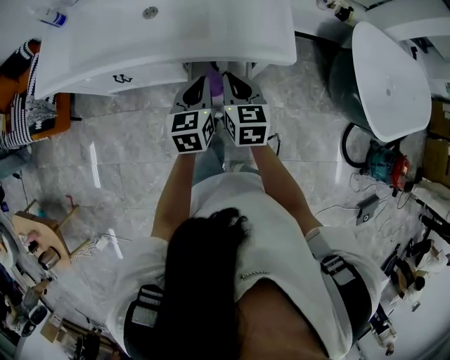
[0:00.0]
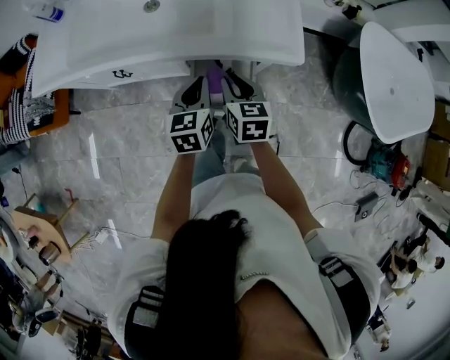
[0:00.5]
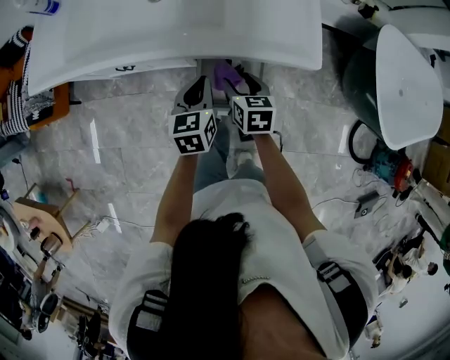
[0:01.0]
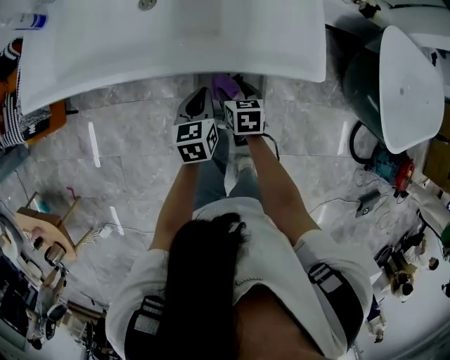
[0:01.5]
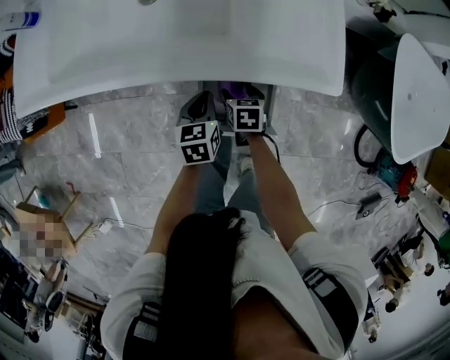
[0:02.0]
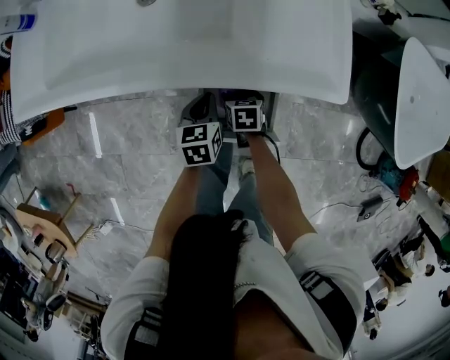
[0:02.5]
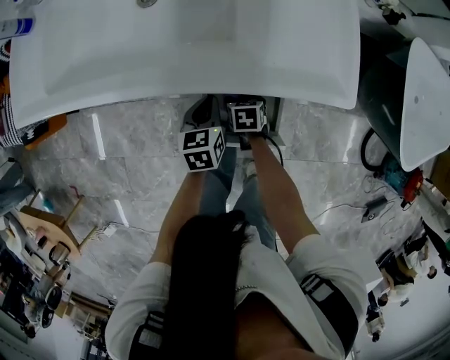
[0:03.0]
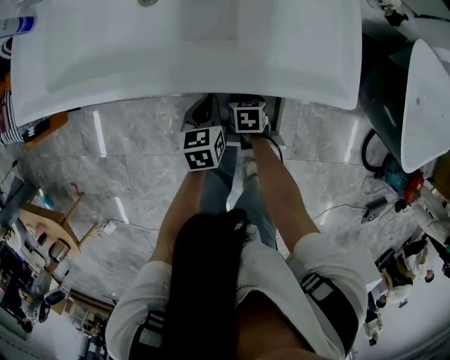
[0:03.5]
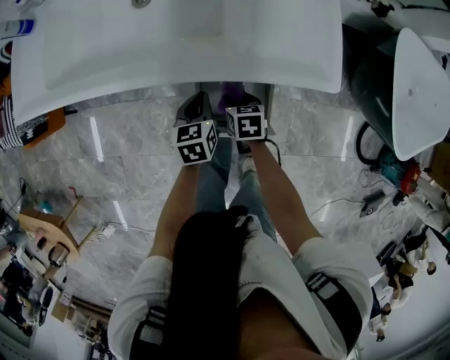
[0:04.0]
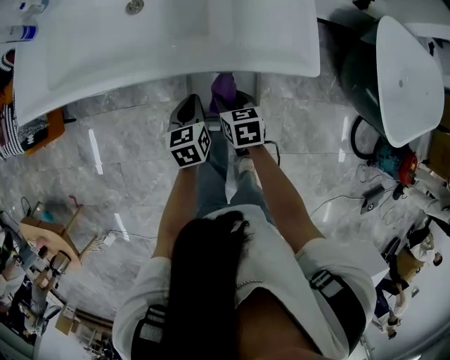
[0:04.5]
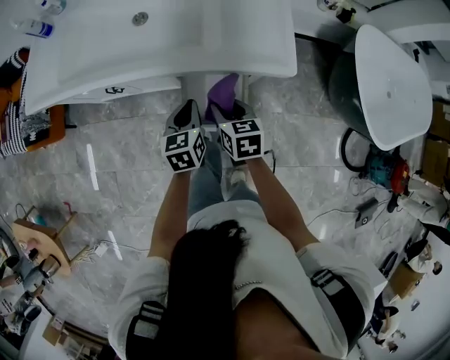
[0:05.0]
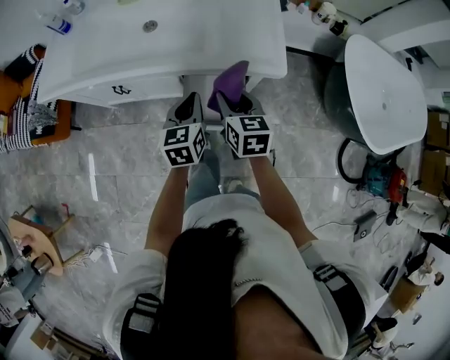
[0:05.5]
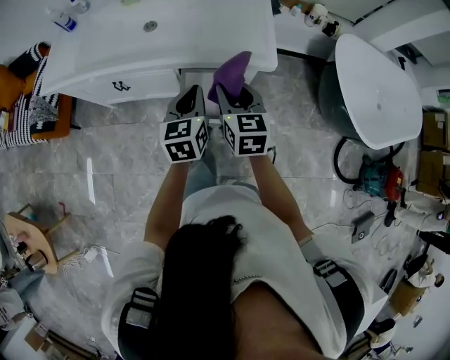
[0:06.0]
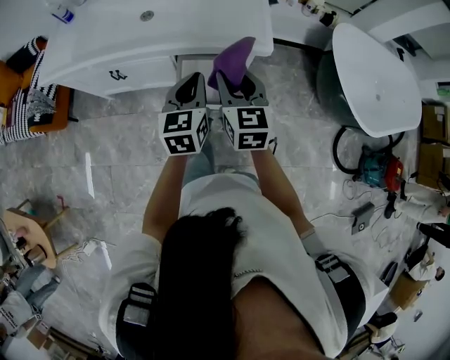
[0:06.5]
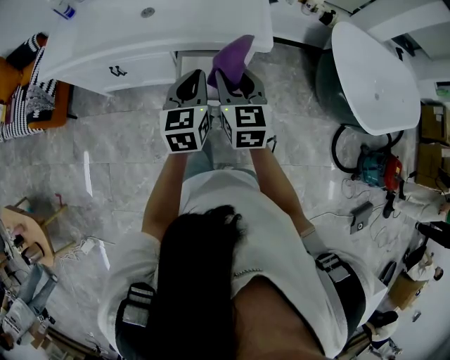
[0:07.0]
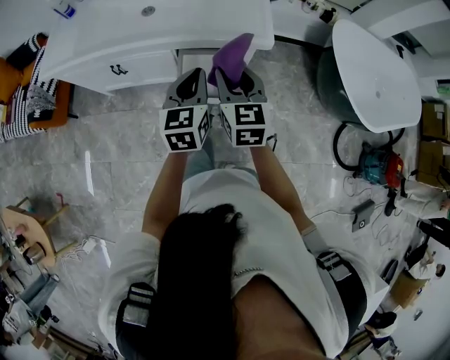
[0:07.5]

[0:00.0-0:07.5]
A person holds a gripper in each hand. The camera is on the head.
0.0 to 2.0 s: The left gripper travels downward by some 20 cm. The right gripper is displaced downward by some 25 cm, tips its fingers downward by about 30 degrees, and opens up.
2.0 to 4.0 s: The right gripper travels downward and back again, some 5 cm each way, and closes its fingers.
4.0 to 5.5 s: Both grippers move upward, some 20 cm. The right gripper swivels approximately 30 degrees.
5.5 to 7.5 s: The two grippers go roughly 10 cm upward and backward.

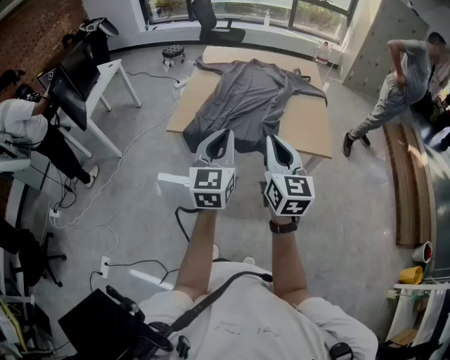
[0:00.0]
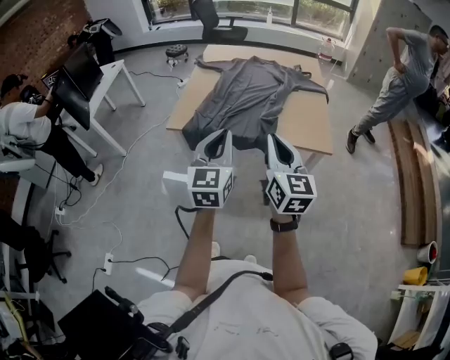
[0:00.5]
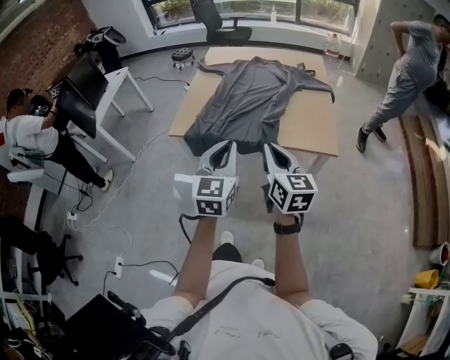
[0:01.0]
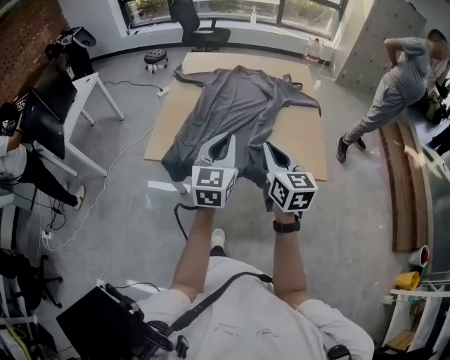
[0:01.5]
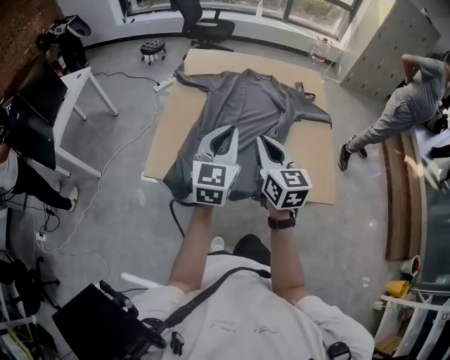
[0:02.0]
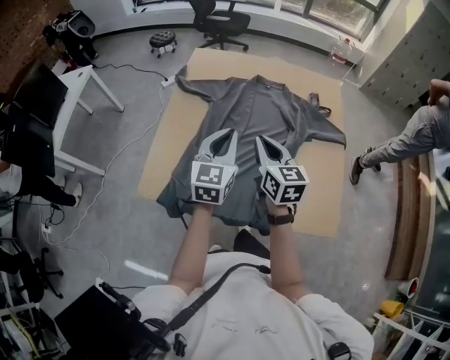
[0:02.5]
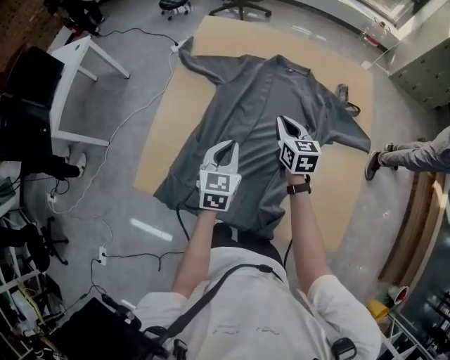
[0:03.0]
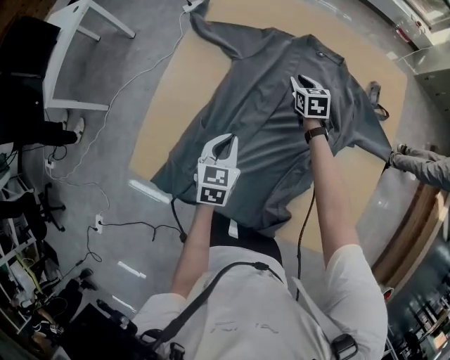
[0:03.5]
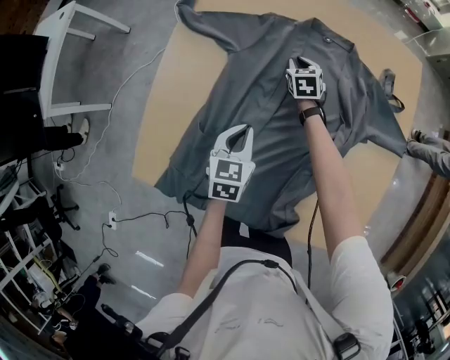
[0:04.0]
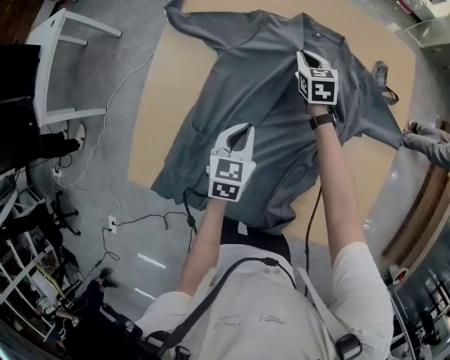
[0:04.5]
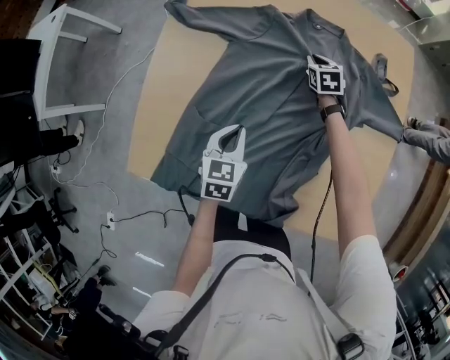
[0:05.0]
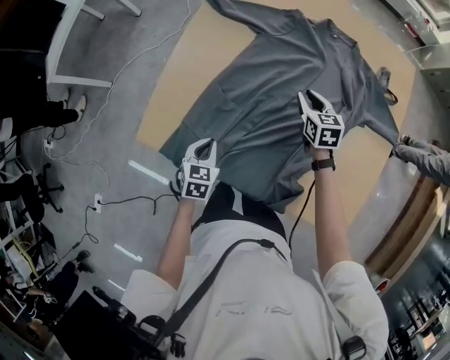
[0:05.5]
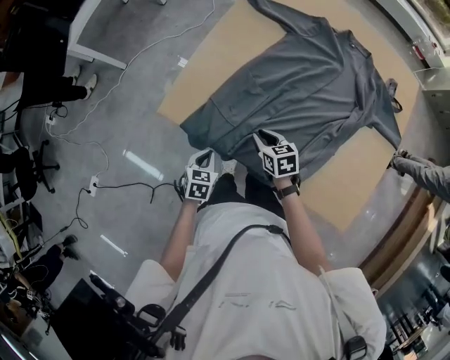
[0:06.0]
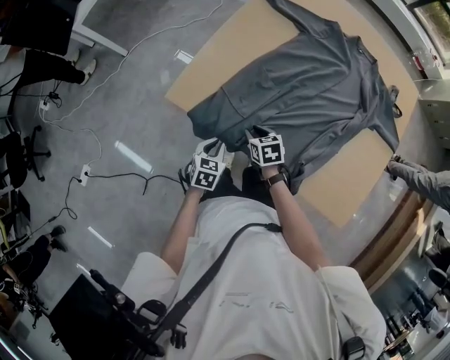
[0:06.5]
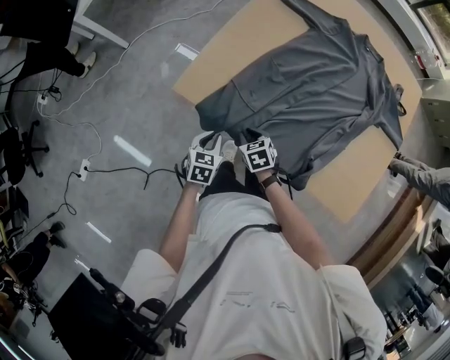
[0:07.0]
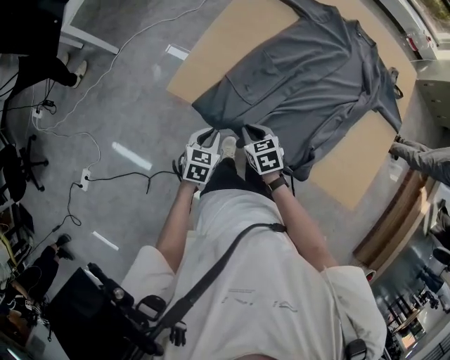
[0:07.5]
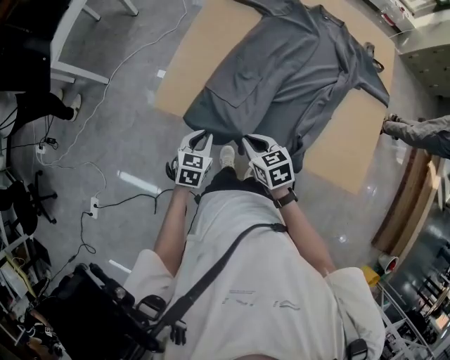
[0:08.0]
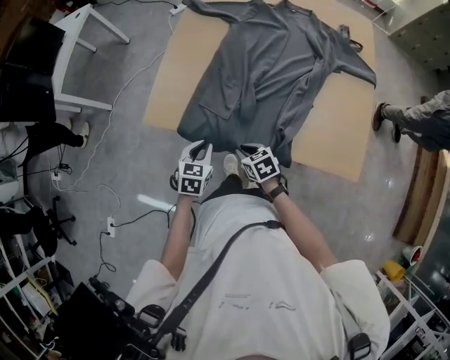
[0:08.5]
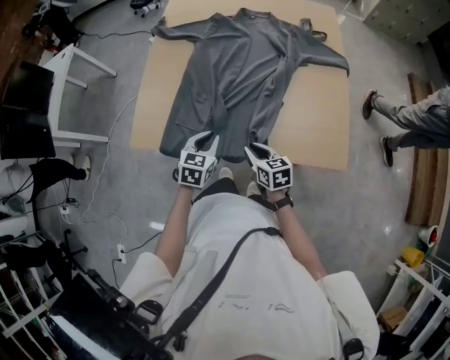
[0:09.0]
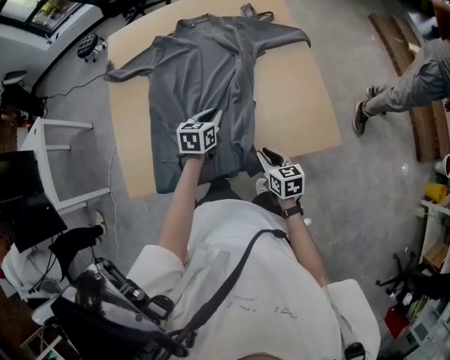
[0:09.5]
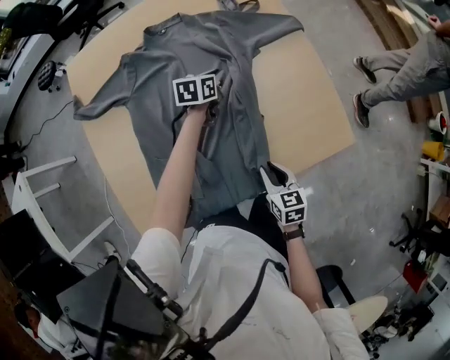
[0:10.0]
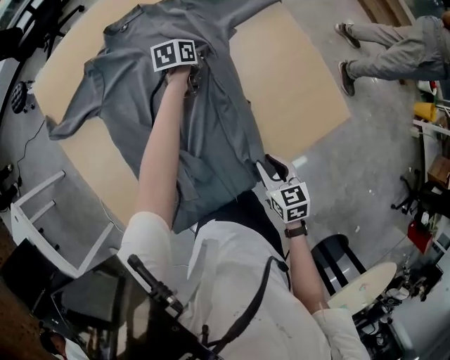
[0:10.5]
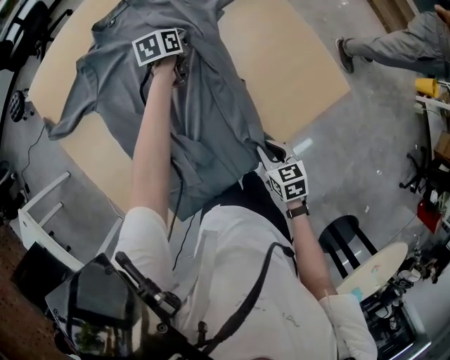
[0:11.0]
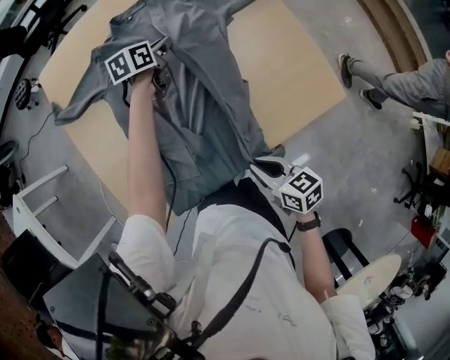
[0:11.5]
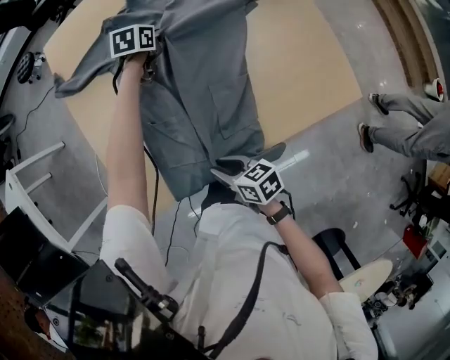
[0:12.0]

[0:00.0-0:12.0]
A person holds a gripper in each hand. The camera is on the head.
0.0 to 2.0 s: Both grippers travel together forward, some 35 cm.
2.0 to 4.0 s: The right gripper heads forward and downward, covering roughly 70 cm, and tips its fingers downward by roughly 40 degrees. The left gripper moves downward and forward, roughly 40 cm, and points its fingers approximately 40 degrees further downward.
4.0 to 6.0 s: The left gripper changes place by about 35 cm, while the right gripper moves up and down over some 10 cm, changing direction 2 times, and swivels roughly 30 degrees.
6.0 to 8.0 s: The right gripper heads backward, upward and to the left, covering roughly 10 cm. Meanwhile the left gripper shifts by approximately 5 cm.
8.0 to 10.0 s: The left gripper moves some 5 cm upward and comes back, and swivels some 40 degrees; the right gripper moves approximately 25 cm, and turns by approximately 60 degrees.
10.0 to 12.0 s: The left gripper swings up and down, some 10 cm each way, with 2 reversals. The right gripper goes upward and returns, approximately 5 cm each way, and changes its angle by approximately 40 degrees.

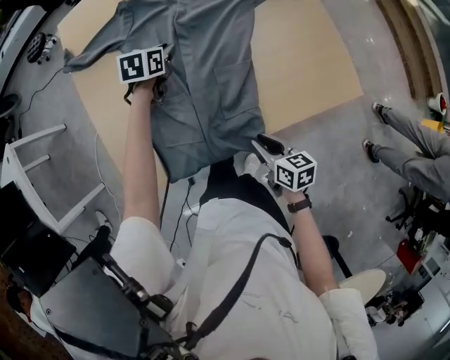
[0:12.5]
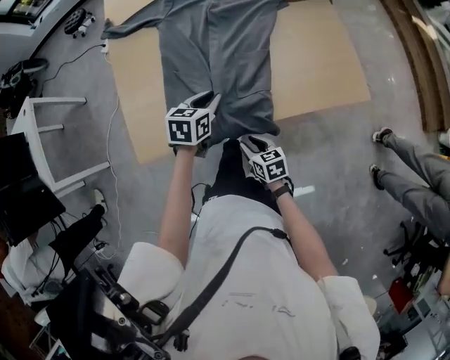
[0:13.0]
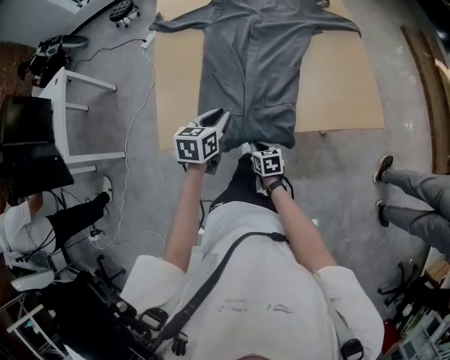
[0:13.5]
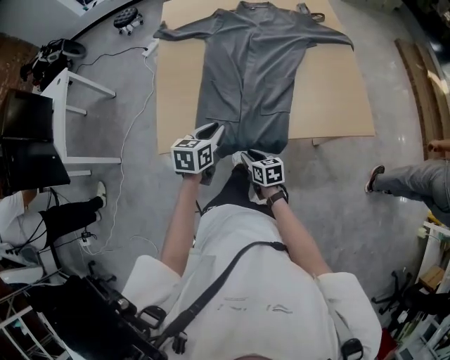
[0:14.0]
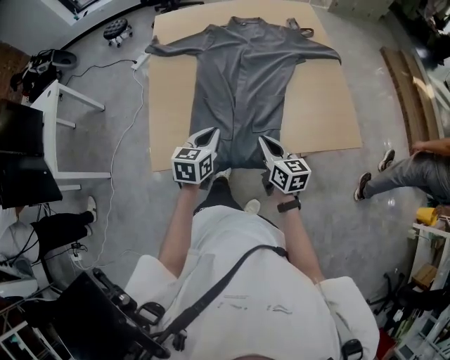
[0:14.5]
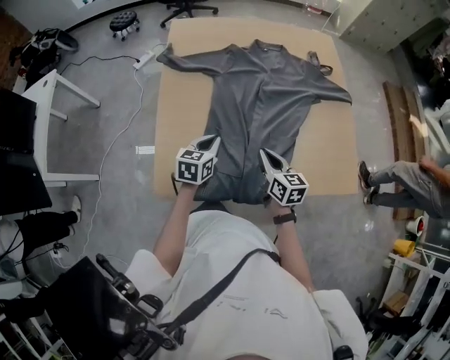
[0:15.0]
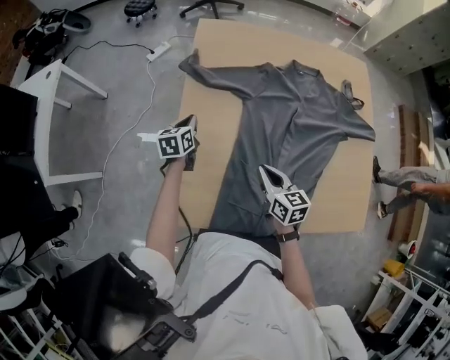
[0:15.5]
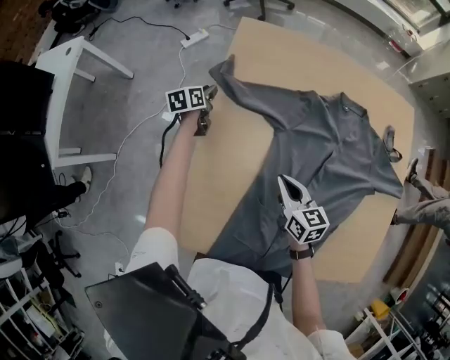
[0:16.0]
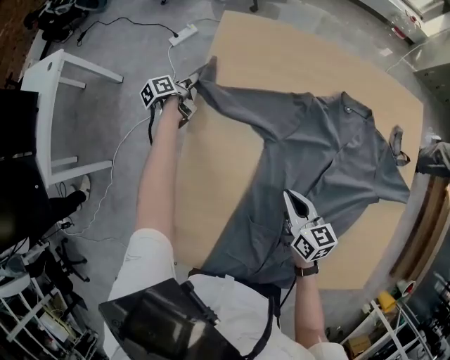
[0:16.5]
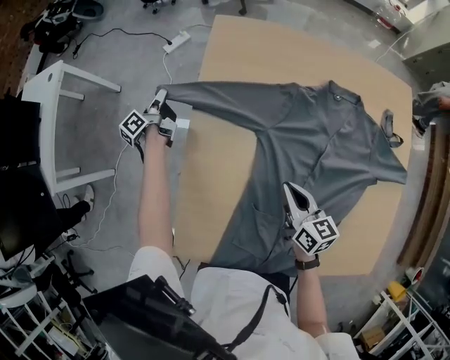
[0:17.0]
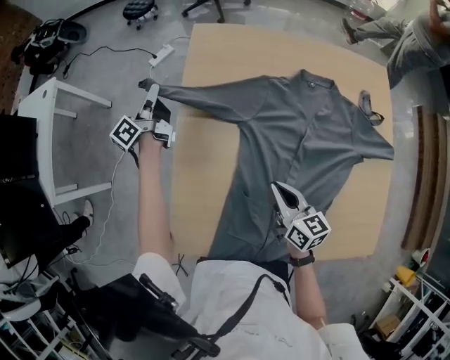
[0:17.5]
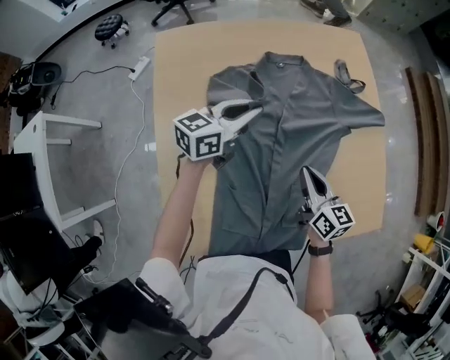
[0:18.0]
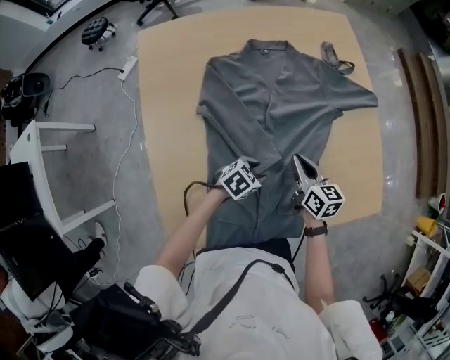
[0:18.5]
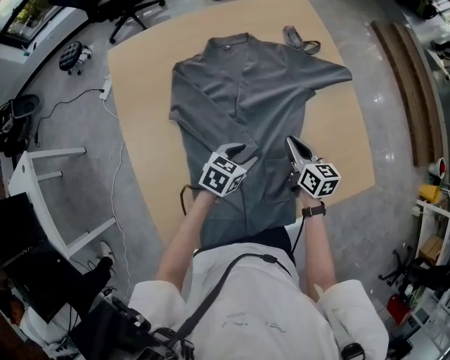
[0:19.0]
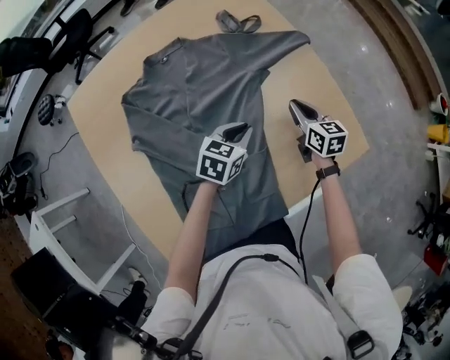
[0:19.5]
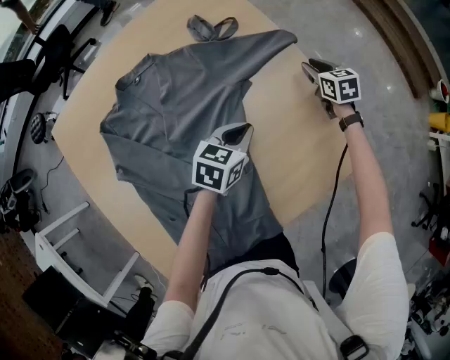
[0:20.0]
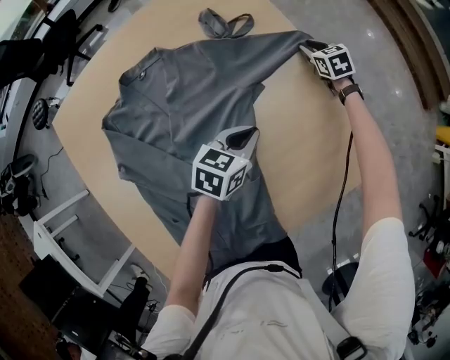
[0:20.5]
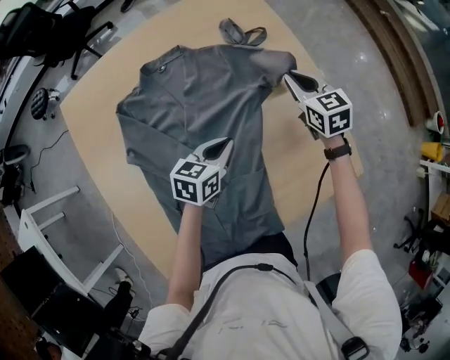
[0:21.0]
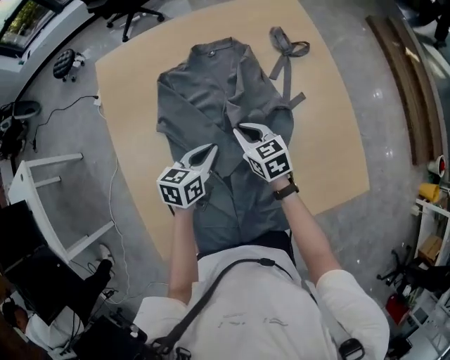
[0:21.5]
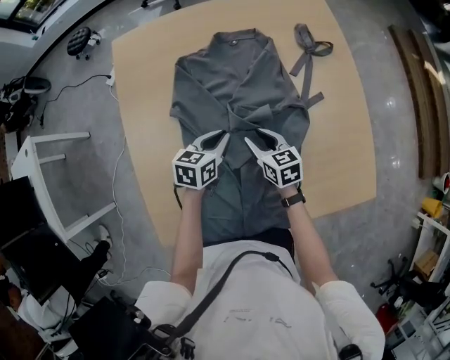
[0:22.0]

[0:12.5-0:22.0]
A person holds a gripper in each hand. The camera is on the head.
12.5 to 14.5 s: The left gripper travels backward and upward by roughly 30 cm, and changes its angle by approximately 20 degrees. The right gripper shifts about 15 cm upward and to the left, and swivels about 30 degrees.
14.5 to 16.5 s: The right gripper travels forward by approximately 35 cm, and swivels about 20 degrees. The left gripper shifts roughly 70 cm forward, to the left and downward, rolls counterclockwise, seen from behind, by approximately 60 degrees, and opens up.
16.5 to 18.0 s: The left gripper ends up some 50 cm from where it was, swivels approximately 70 degrees, and closes its fingers. The right gripper ends up about 20 cm from where it was, and swivels about 30 degrees.
18.0 to 20.0 s: The right gripper heads to the right, forward and downward, covering about 50 cm, and rotates some 30 degrees. Meanwhile the left gripper moves to the right, roughly 35 cm, points its fingers some 30 degrees further downward, and opens, then closes once more.
20.0 to 22.0 s: The right gripper goes up and down, some 15 cm each way, reversing 2 times, and swivels approximately 30 degrees. The left gripper ends up some 30 cm from where it was, and swivels approximately 30 degrees.
